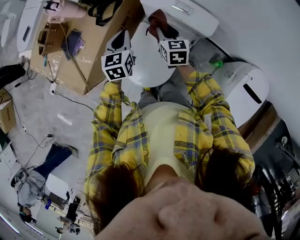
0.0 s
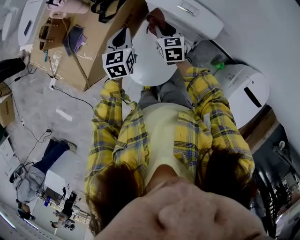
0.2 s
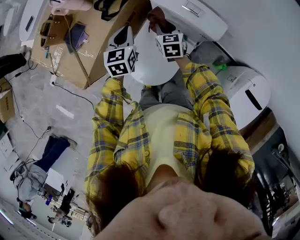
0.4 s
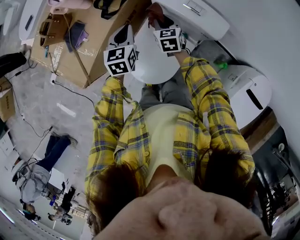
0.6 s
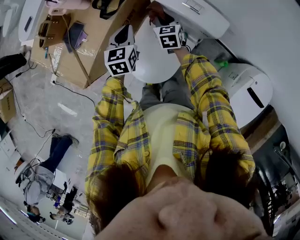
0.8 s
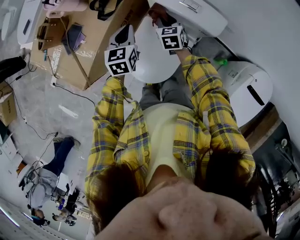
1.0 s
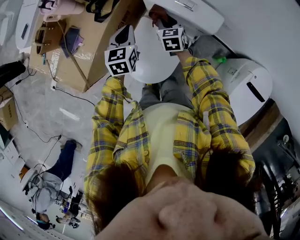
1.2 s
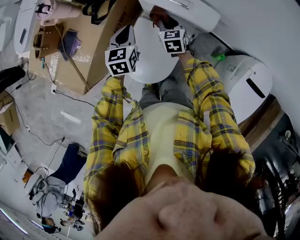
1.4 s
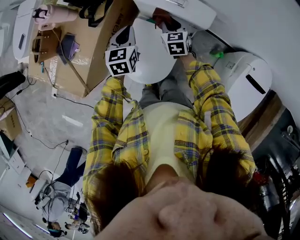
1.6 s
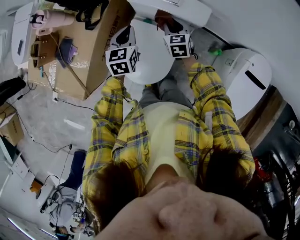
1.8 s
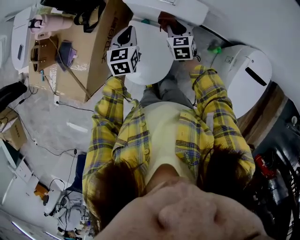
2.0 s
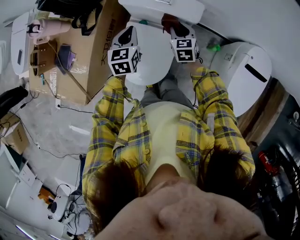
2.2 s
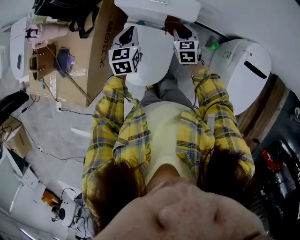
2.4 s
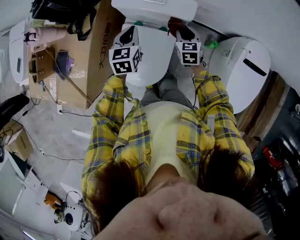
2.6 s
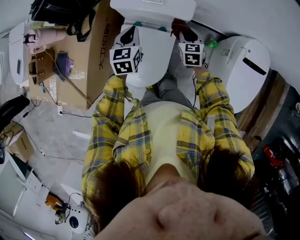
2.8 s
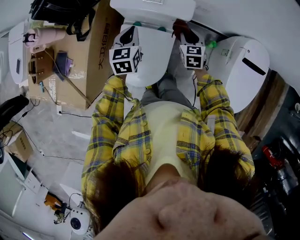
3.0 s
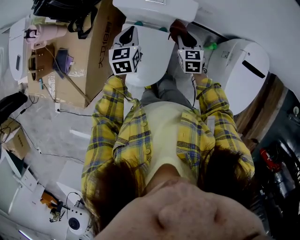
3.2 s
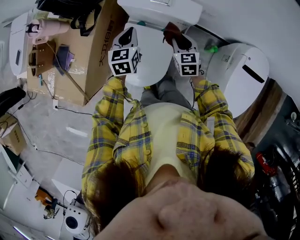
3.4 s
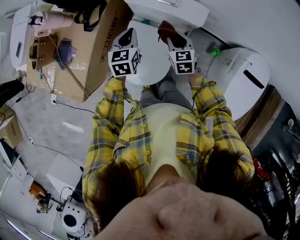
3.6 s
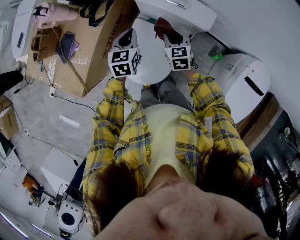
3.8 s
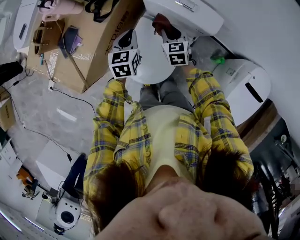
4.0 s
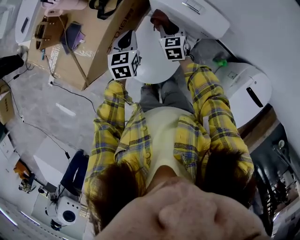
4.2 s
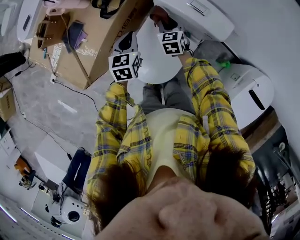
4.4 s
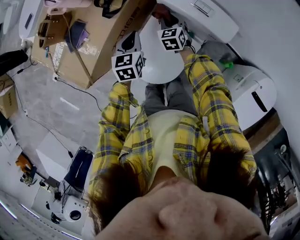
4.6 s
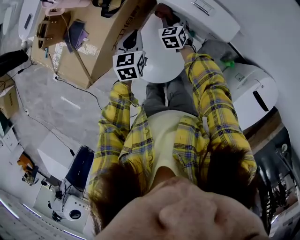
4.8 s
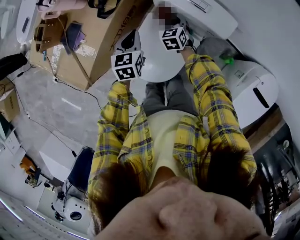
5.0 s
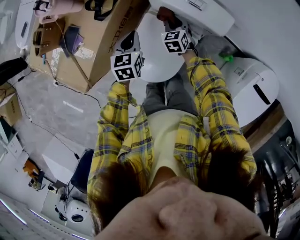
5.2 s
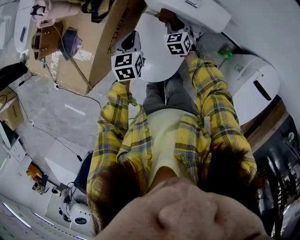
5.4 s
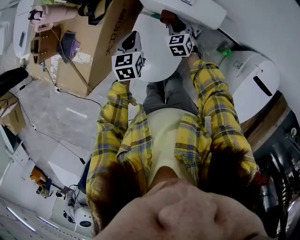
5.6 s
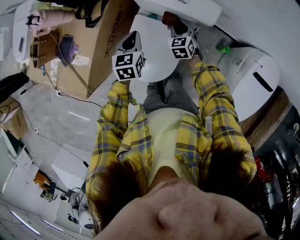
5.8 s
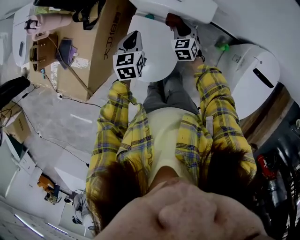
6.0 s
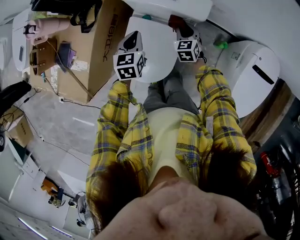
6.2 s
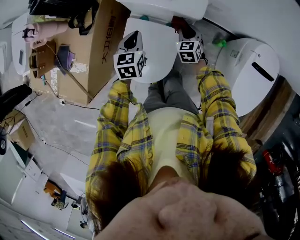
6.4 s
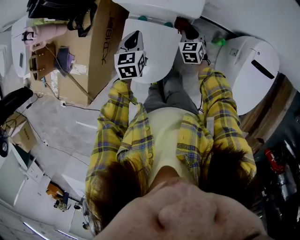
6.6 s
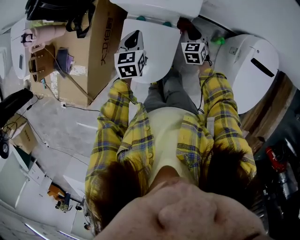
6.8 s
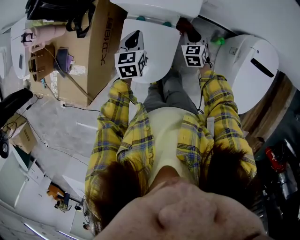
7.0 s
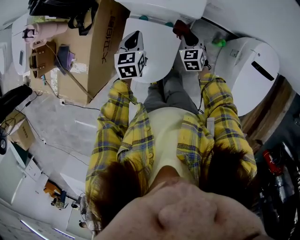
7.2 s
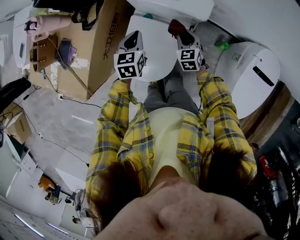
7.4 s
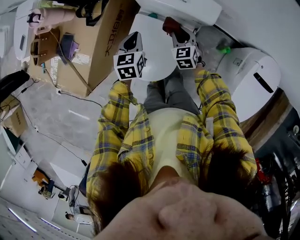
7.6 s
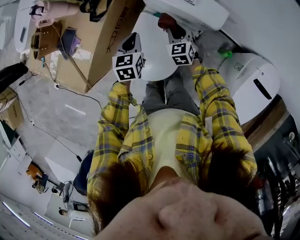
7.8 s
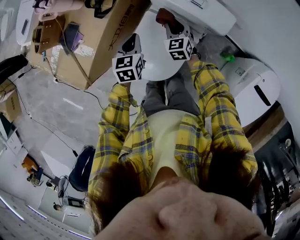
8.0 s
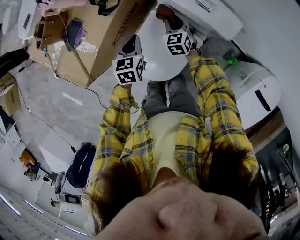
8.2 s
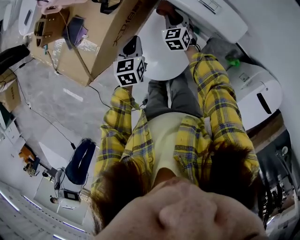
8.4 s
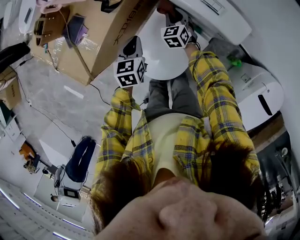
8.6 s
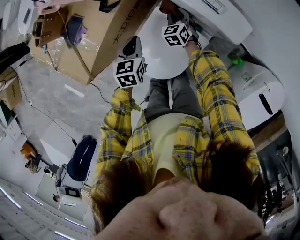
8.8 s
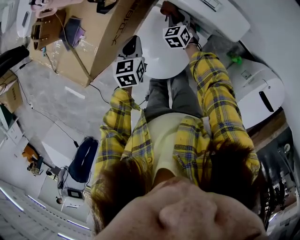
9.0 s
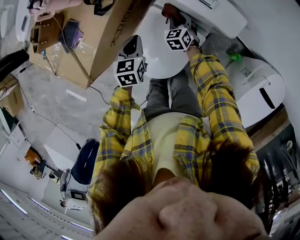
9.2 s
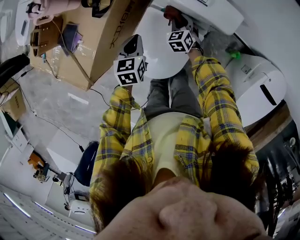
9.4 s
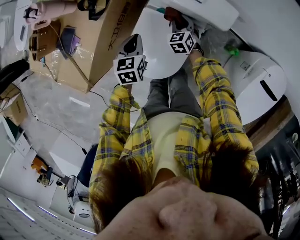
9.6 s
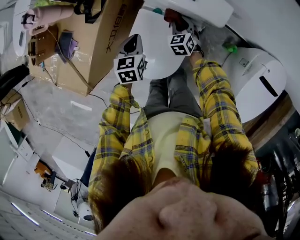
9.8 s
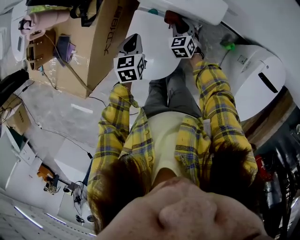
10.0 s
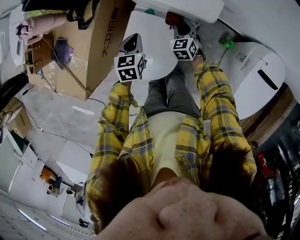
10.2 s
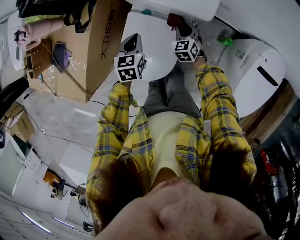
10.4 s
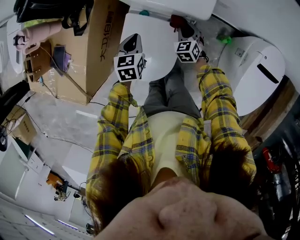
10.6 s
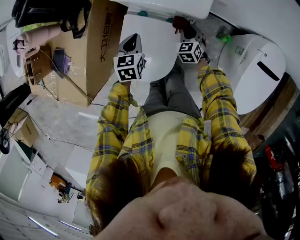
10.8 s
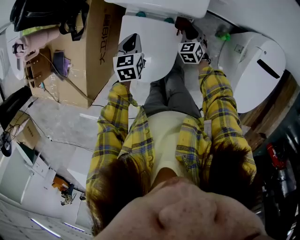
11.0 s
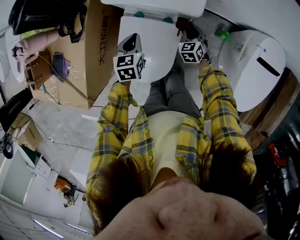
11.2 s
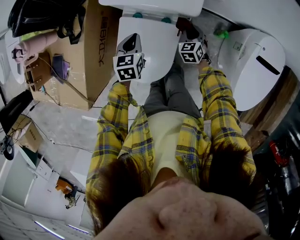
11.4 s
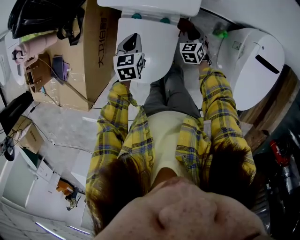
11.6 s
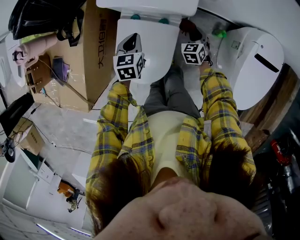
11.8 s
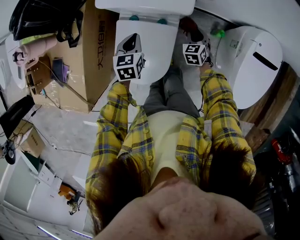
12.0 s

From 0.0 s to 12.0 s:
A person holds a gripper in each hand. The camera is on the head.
From 0.0 s to 1.6 s: The right gripper heads downward, covering approximately 5 cm. The left gripper shifts by approximately 5 cm.
From 1.6 s to 3.0 s: The right gripper travels to the right by approximately 15 cm. The left gripper shifts some 10 cm to the right.
From 3.0 s to 4.4 s: The right gripper ends up approximately 25 cm from where it was, and changes its angle by about 30 degrees. The left gripper shifts by some 15 cm, and swivels some 20 degrees.
From 4.4 s to 6.0 s: The right gripper heads to the right and backward, covering about 15 cm. The left gripper shifts roughly 10 cm to the right.
From 6.0 s to 7.6 s: The right gripper goes to the right and returns, about 10 cm each way.
From 7.6 s to 9.0 s: The right gripper moves forward, to the left and downward, approximately 15 cm. The left gripper heads to the left, covering roughly 5 cm.
From 9.0 s to 10.4 s: The left gripper heads to the right, covering roughly 10 cm; the right gripper is displaced to the right and backward by approximately 15 cm.
From 10.4 s to 12.0 s: The left gripper shifts by some 5 cm; the right gripper travels to the right by roughly 15 cm.

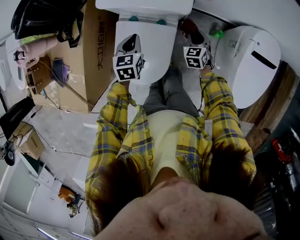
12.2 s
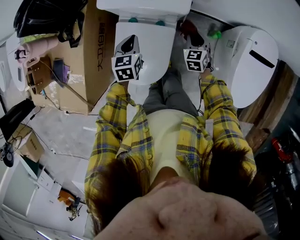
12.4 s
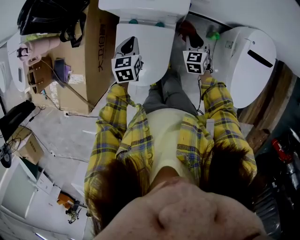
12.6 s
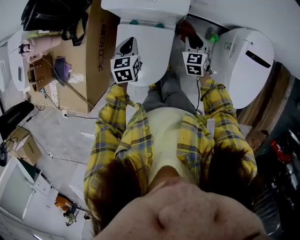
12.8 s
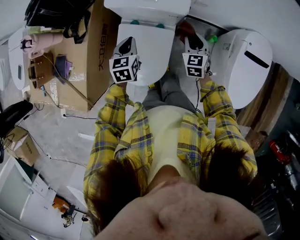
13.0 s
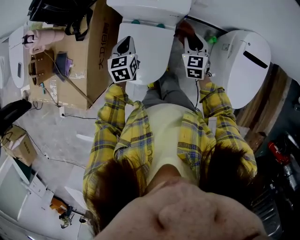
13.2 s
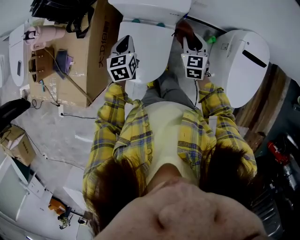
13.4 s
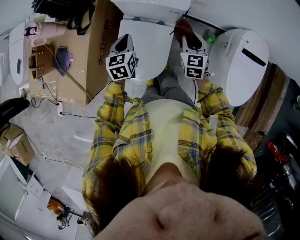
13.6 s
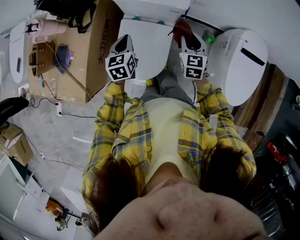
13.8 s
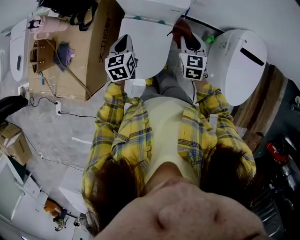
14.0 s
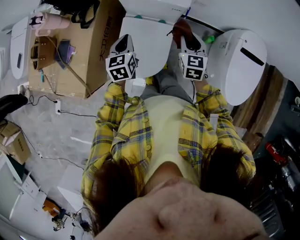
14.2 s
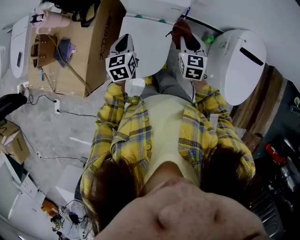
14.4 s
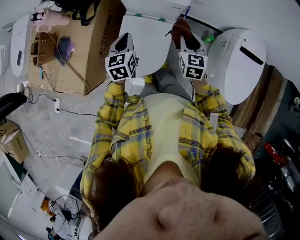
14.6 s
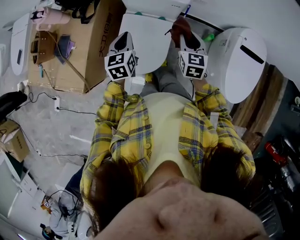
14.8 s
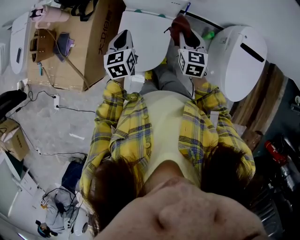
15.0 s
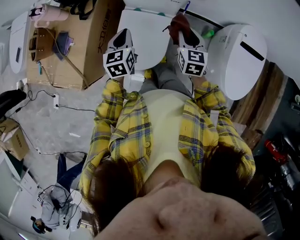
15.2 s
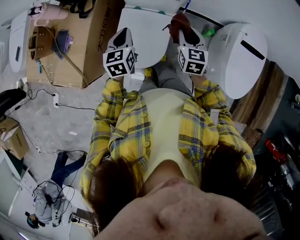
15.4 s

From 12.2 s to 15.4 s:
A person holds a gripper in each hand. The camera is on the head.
From 12.2 s to 13.8 s: The left gripper goes about 10 cm upward and backward; the right gripper is displaced upward and backward by approximately 20 cm.
From 13.8 s to 15.4 s: Both grippers move backward, some 5 cm.

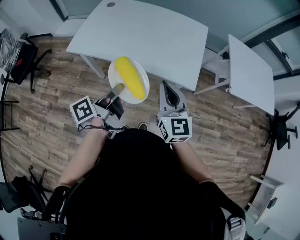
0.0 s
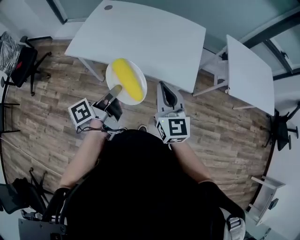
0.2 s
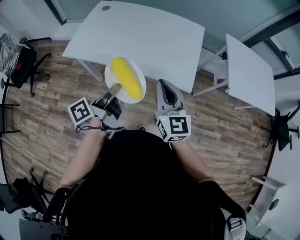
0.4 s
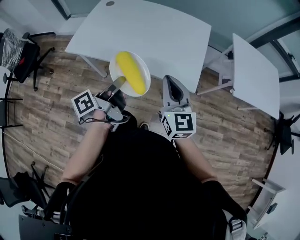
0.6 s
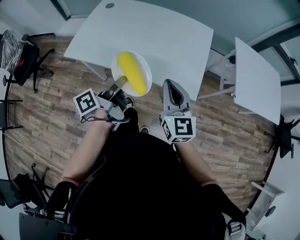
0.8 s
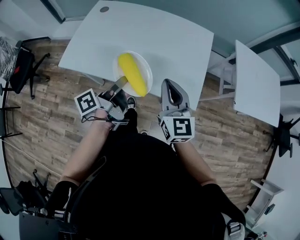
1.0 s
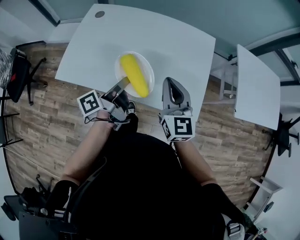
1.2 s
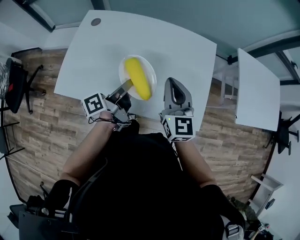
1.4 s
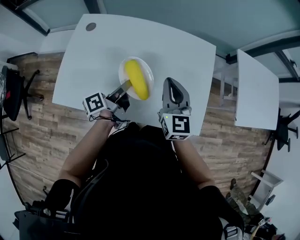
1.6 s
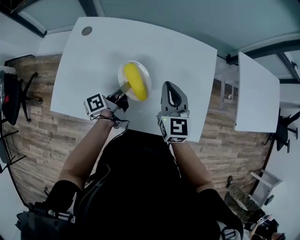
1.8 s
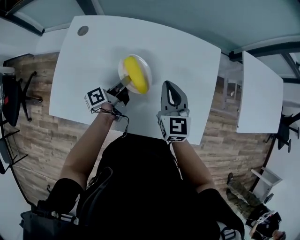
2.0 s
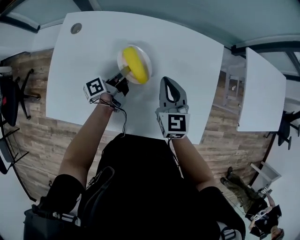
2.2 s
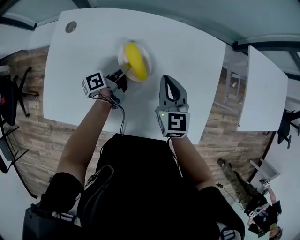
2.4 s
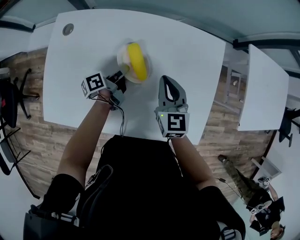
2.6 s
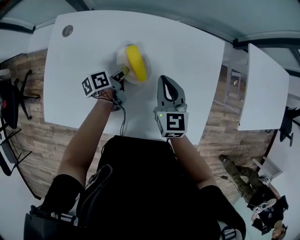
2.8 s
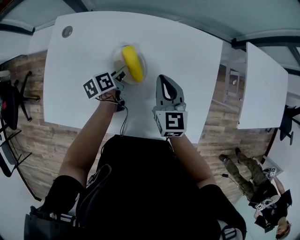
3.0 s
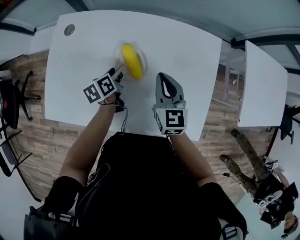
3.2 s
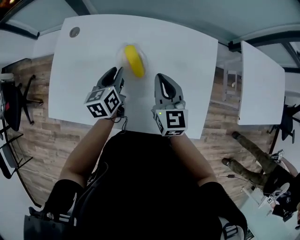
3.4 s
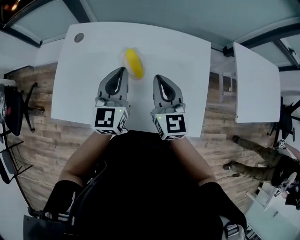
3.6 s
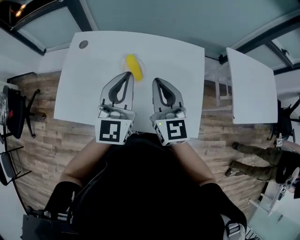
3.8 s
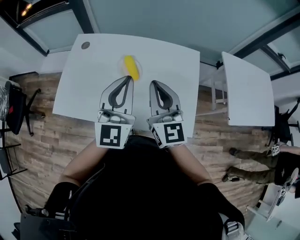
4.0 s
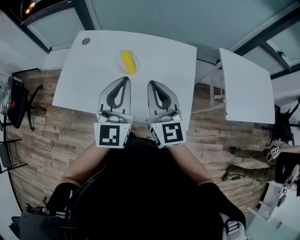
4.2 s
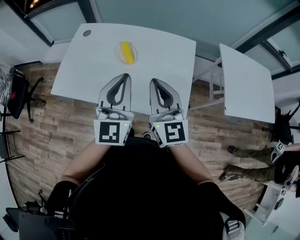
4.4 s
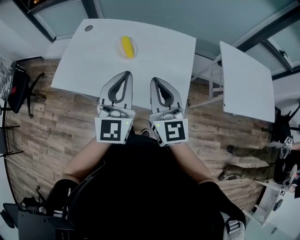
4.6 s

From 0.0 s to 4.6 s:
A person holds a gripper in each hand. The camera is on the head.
From 0.0 s to 1.6 s: The grippers both shift forward by roughly 30 cm.
From 1.6 s to 3.0 s: Both grippers travel together downward and forward, roughly 15 cm. The left gripper points its fingers some 30 degrees further downward, and opens.
From 3.0 s to 4.6 s: The right gripper moves backward and upward, roughly 30 cm, and turns by roughly 30 degrees. The left gripper heads upward and backward, covering some 40 cm, angles its fingers upward, by some 50 degrees, and closes.

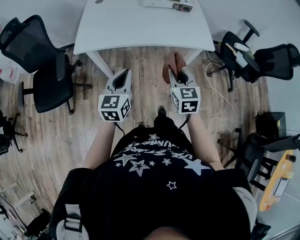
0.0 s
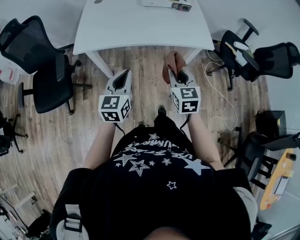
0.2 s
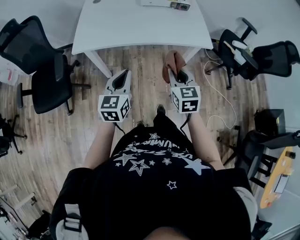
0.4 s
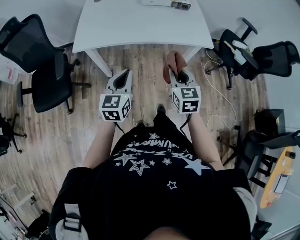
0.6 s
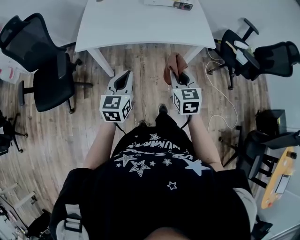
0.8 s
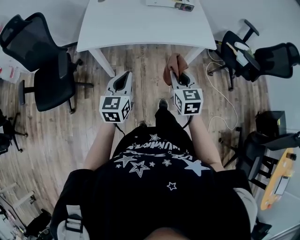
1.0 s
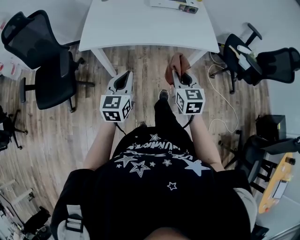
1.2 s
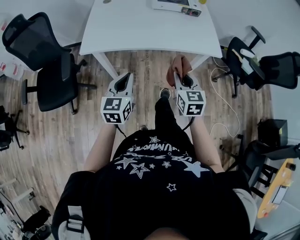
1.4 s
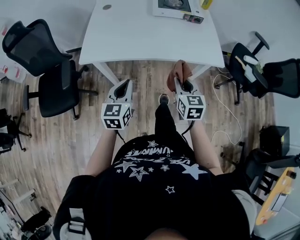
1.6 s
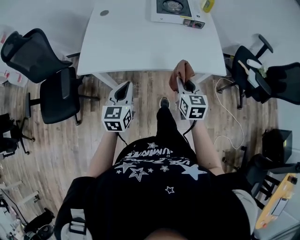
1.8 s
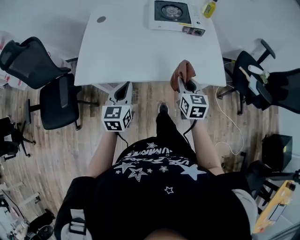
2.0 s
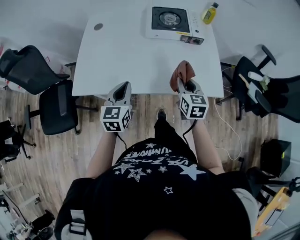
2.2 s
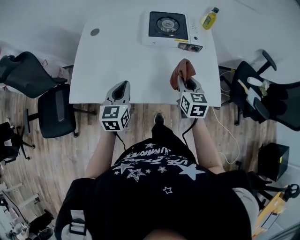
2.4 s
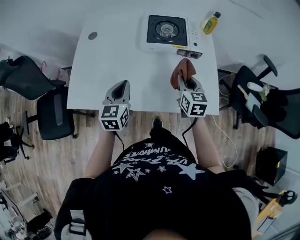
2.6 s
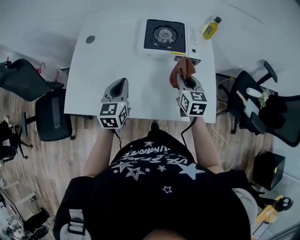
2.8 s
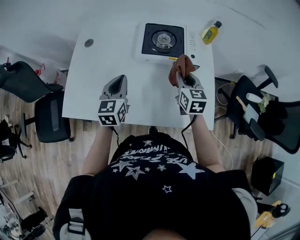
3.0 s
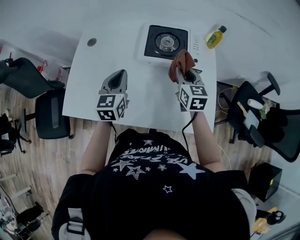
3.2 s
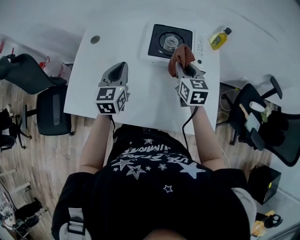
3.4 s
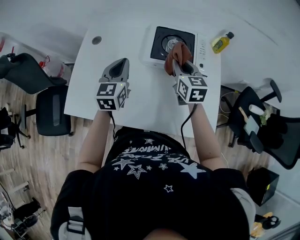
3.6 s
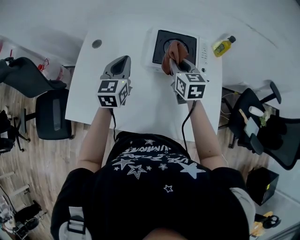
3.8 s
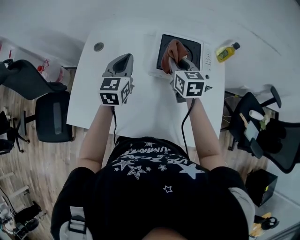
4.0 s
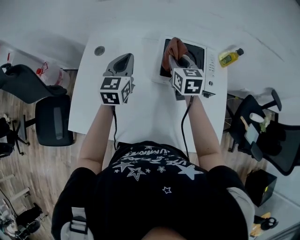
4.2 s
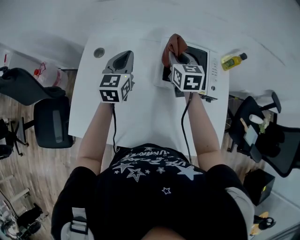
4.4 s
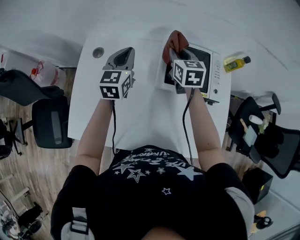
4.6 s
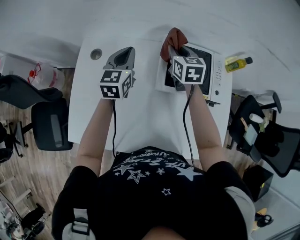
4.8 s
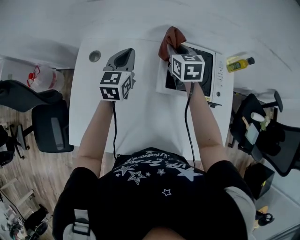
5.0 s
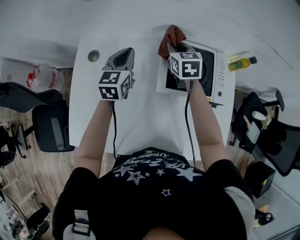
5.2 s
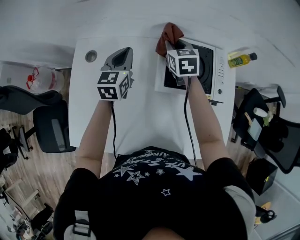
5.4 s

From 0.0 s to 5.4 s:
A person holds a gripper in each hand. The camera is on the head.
From 0.0 s to 1.4 s: The grippers move only a little.
From 1.4 s to 2.8 s: Both grippers move forward, some 40 cm.
From 2.8 s to 4.0 s: The right gripper heads forward and to the left, covering approximately 20 cm. Meanwhile the left gripper is displaced forward by approximately 20 cm.
From 4.0 s to 5.4 s: The right gripper heads forward, covering roughly 20 cm; the left gripper goes some 15 cm forward and downward.
